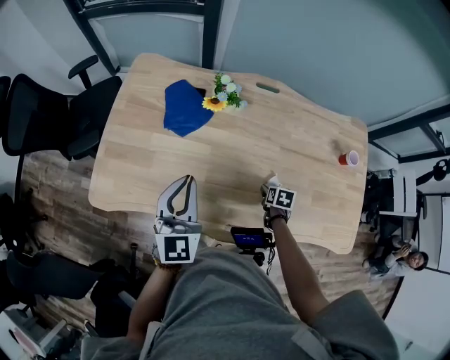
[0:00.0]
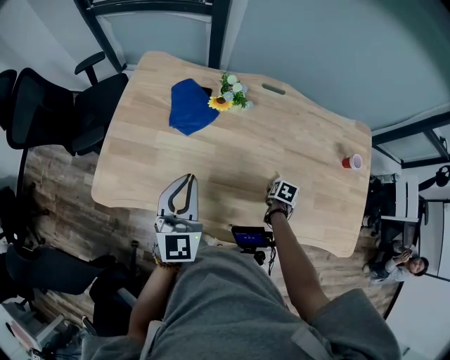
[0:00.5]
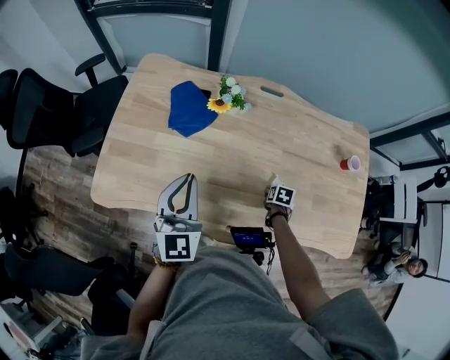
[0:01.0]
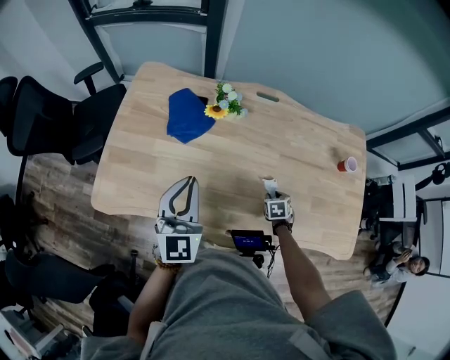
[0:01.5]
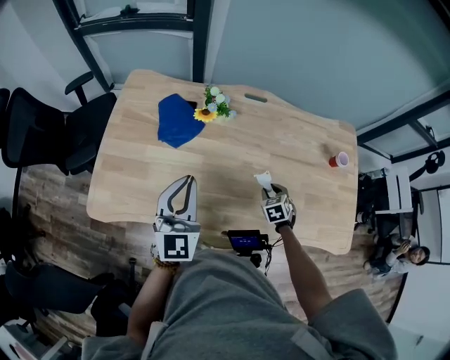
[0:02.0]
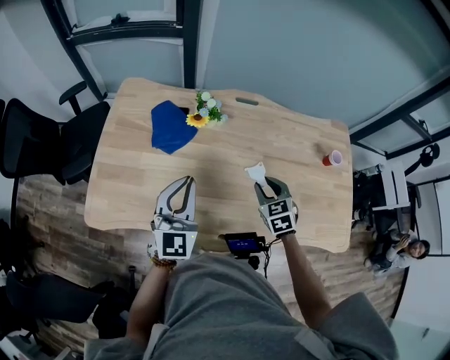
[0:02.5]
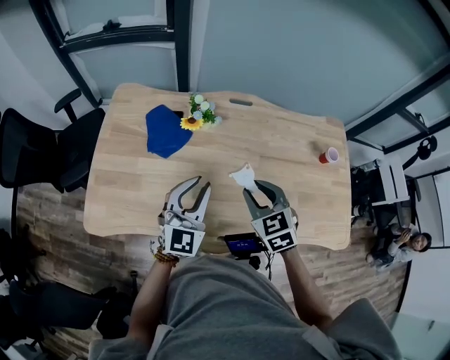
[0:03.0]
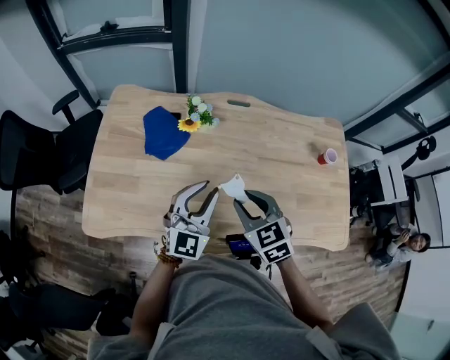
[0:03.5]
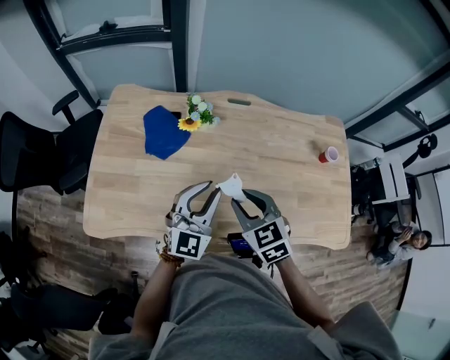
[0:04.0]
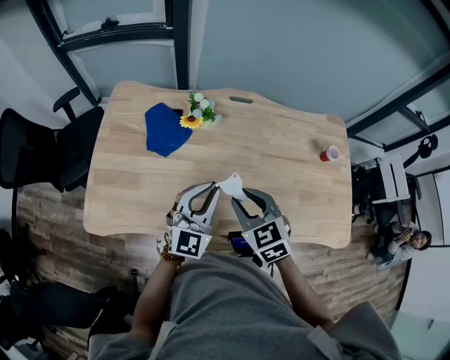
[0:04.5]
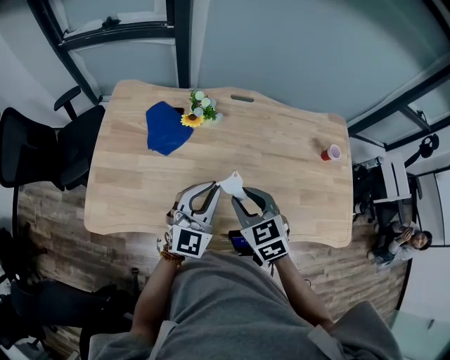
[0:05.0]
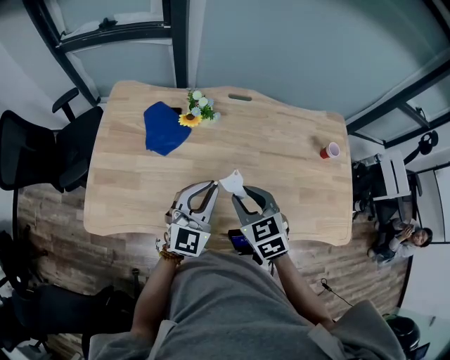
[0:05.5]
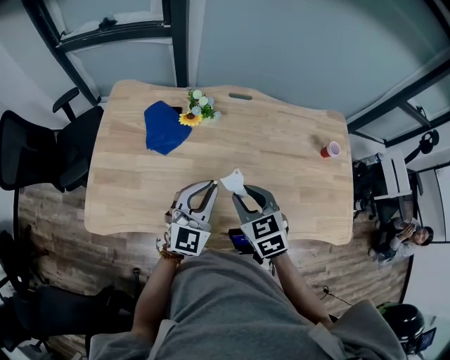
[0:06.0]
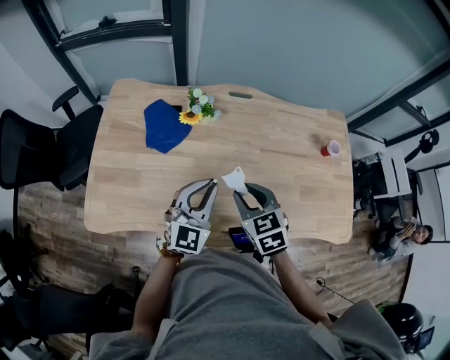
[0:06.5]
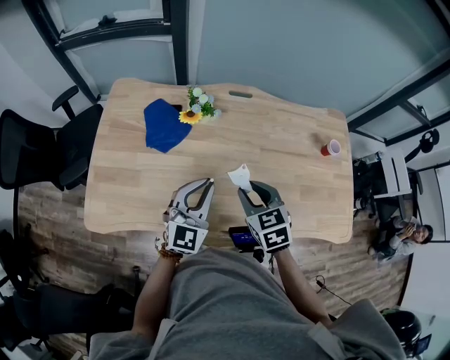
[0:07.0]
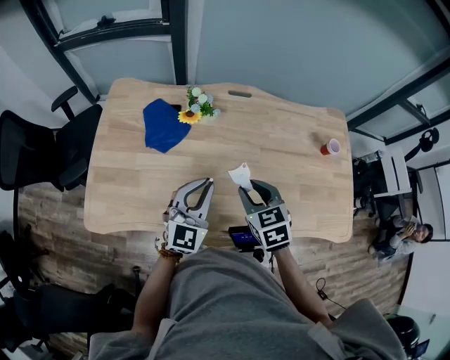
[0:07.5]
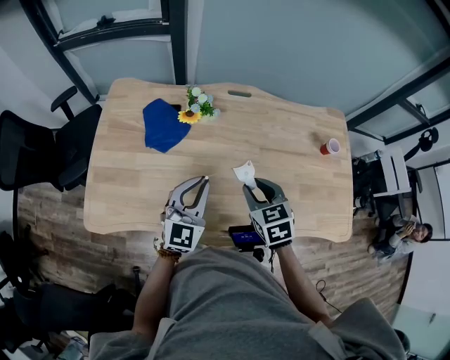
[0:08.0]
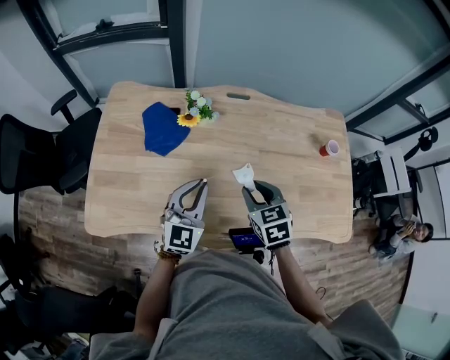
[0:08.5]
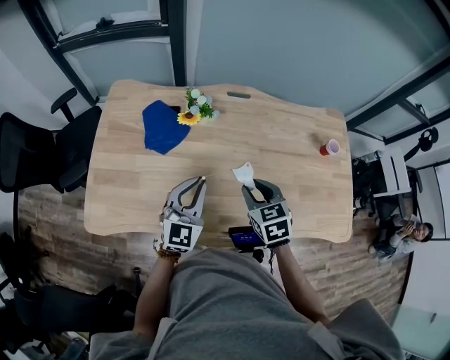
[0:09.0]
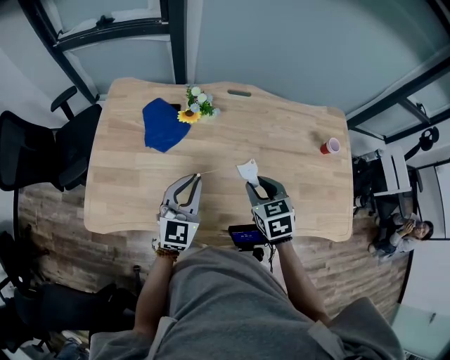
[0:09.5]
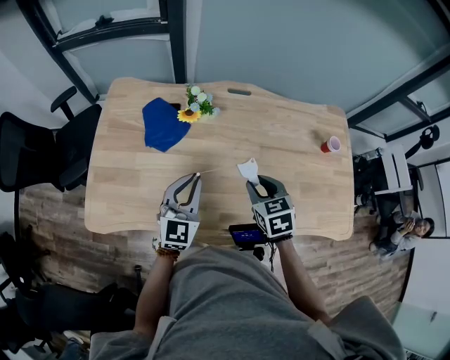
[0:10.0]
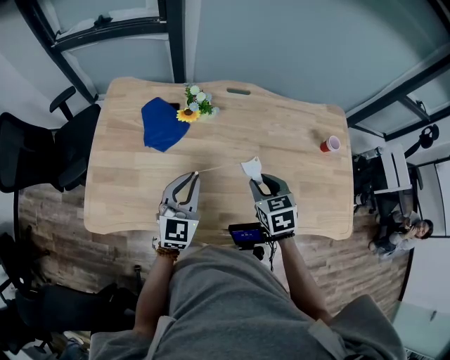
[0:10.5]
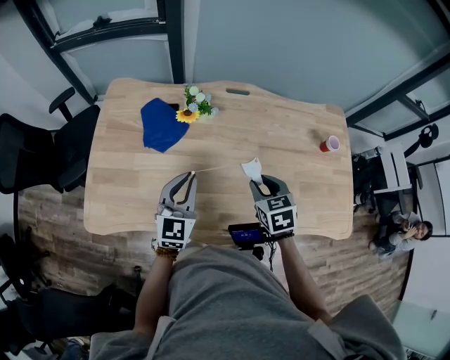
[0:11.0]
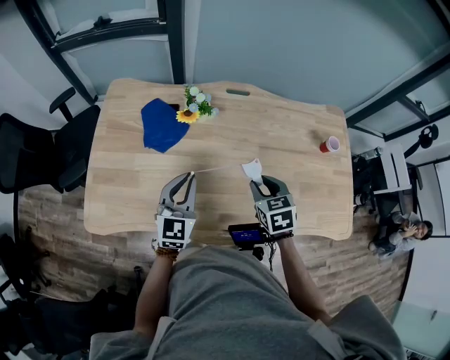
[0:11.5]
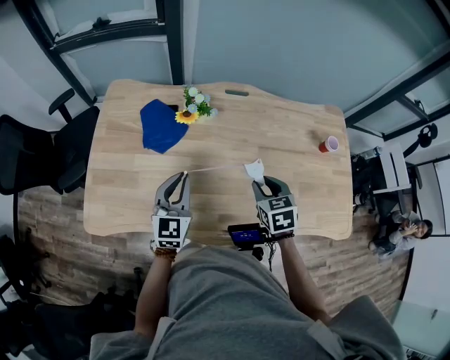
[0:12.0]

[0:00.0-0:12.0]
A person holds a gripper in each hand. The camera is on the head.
0.0 to 2.0 s: The right gripper shifts by about 5 cm, changes its angle by some 40 degrees, and closes its fingers.
2.0 to 4.0 s: The right gripper goes roughly 30 cm upward and to the left, and swivels about 30 degrees, while the left gripper travels to the right by roughly 10 cm, and changes its angle by roughly 20 degrees.
4.0 to 6.0 s: There are only small adjustments of the grippers.
6.0 to 8.0 s: The grippers make only small movements.
8.0 to 10.0 s: The grippers make only small movements.
10.0 to 12.0 s: There are only small adjustments of the grippers.

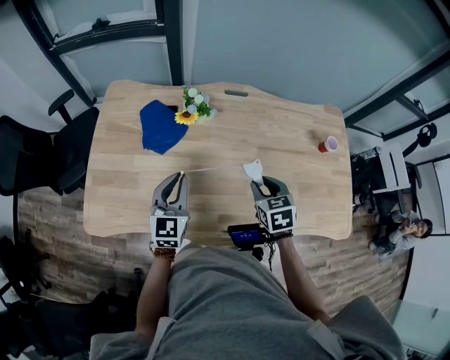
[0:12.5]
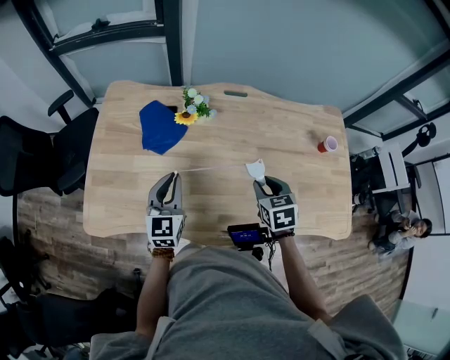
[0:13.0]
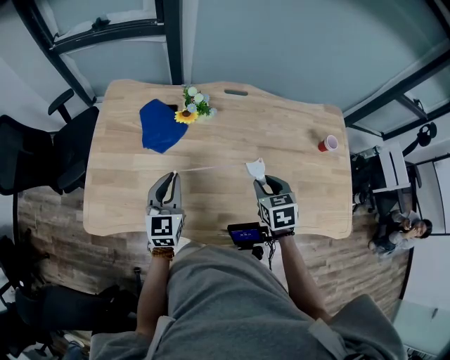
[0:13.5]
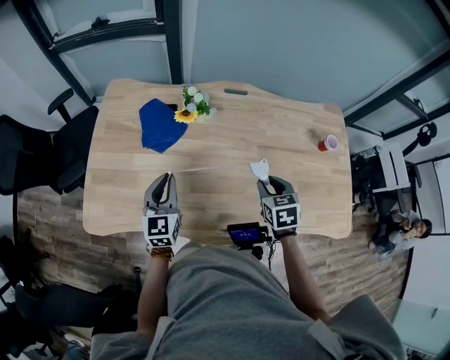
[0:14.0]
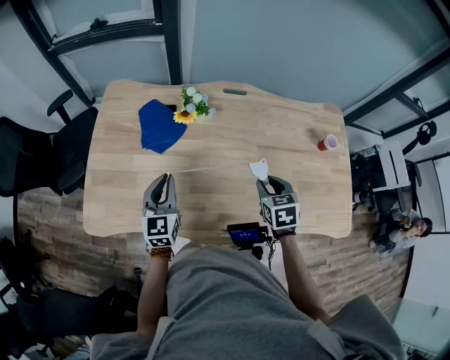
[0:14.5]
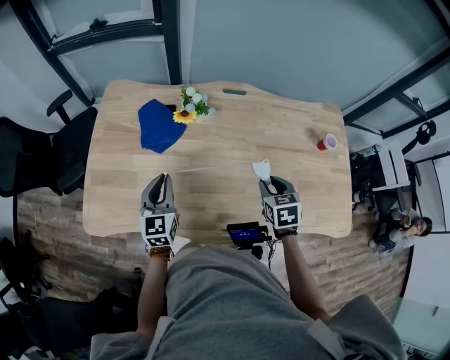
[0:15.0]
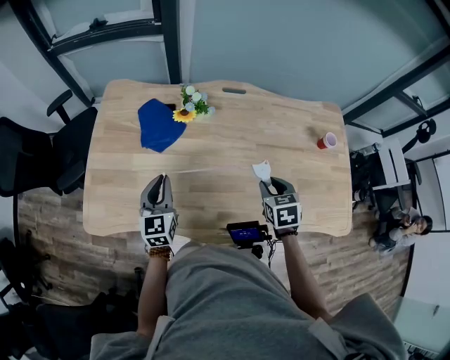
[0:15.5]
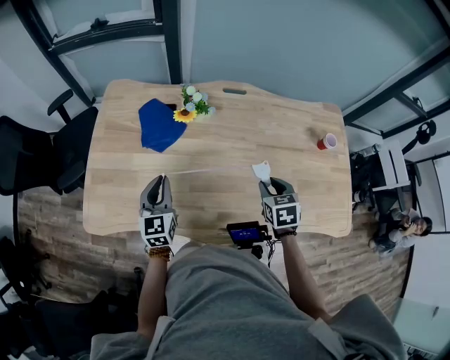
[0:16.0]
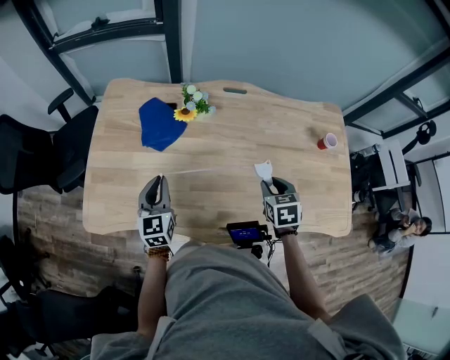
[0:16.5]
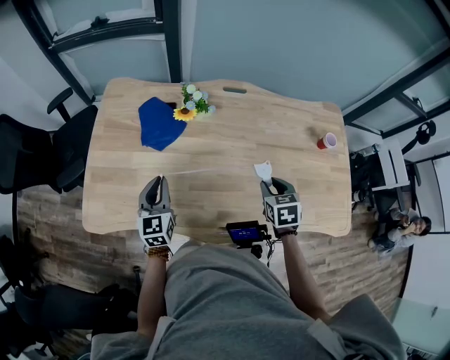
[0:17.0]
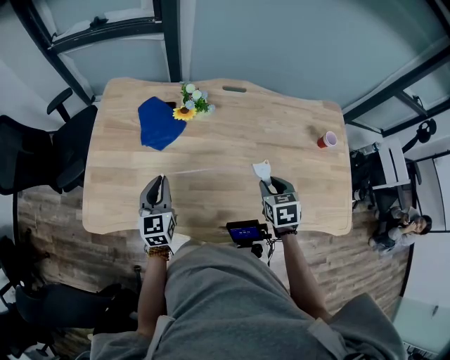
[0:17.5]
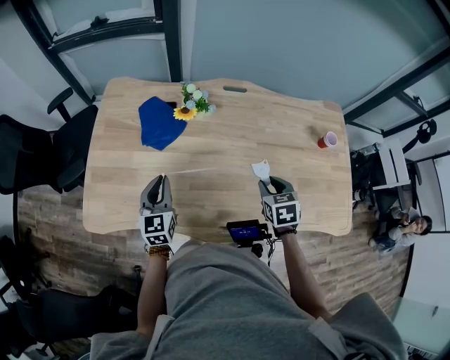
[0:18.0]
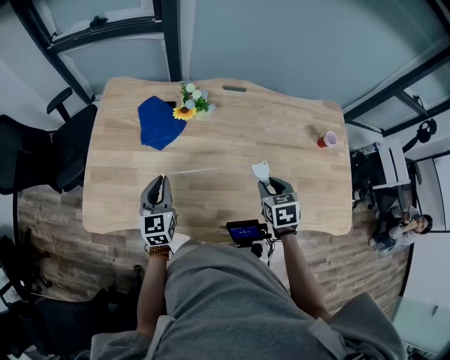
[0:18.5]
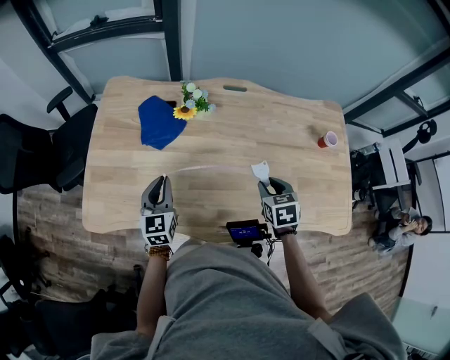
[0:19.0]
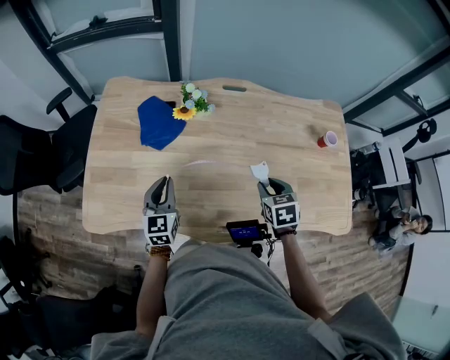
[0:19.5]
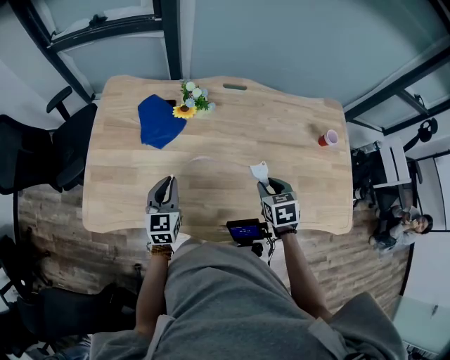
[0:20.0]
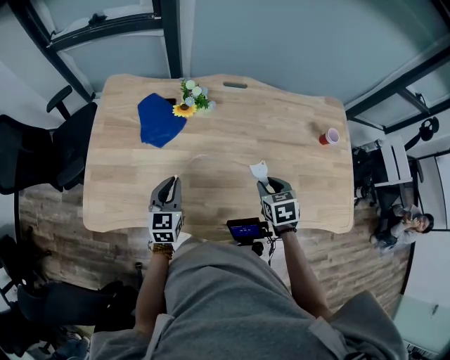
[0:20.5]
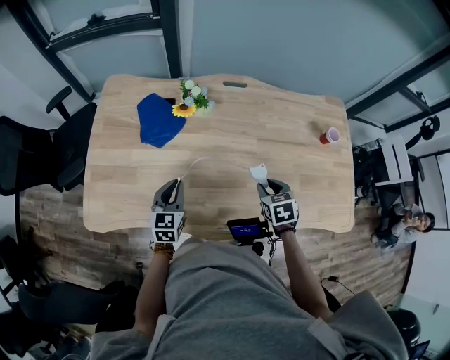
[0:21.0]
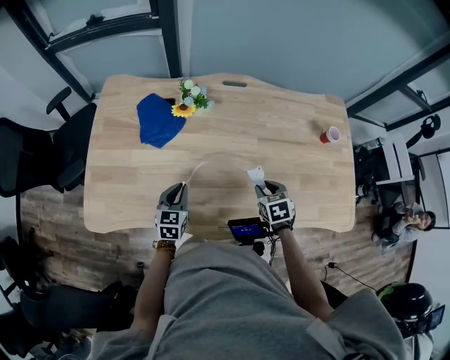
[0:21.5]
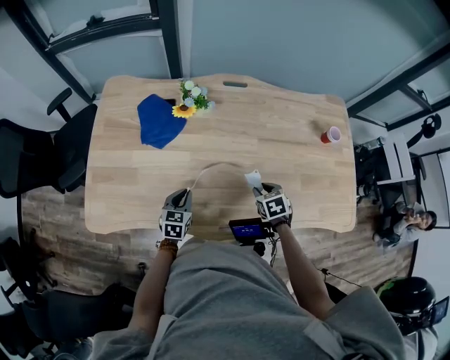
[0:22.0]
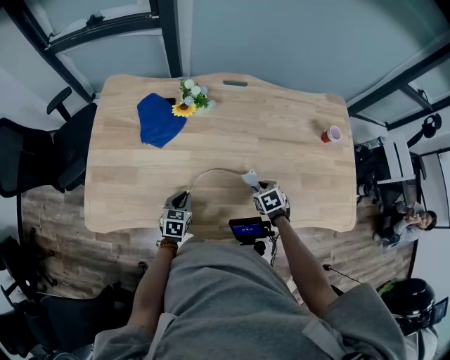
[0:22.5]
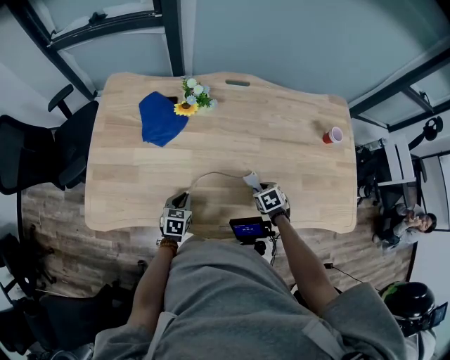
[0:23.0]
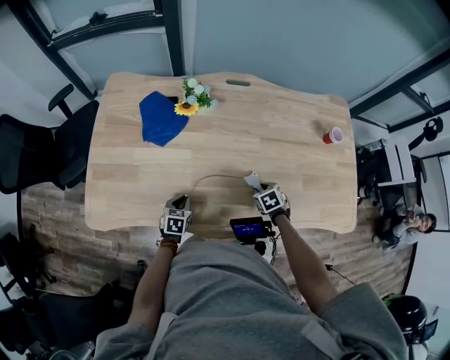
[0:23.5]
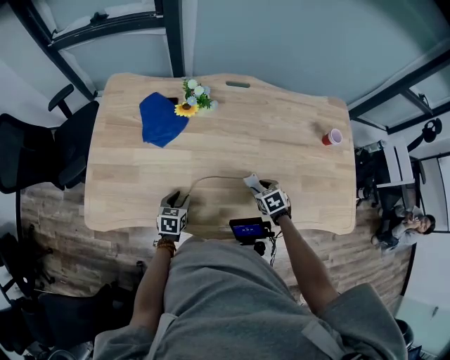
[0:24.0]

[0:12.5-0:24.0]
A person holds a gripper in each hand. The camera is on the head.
12.5 to 14.5 s: There are only small adjustments of the grippers.
14.5 to 16.5 s: The grippers make only small movements.
16.5 to 18.5 s: Neither gripper changes place.
18.5 to 20.0 s: The grippers stay close to where they were, moving slightly.
20.0 to 22.0 s: The grippers both shift downward by approximately 10 cm. The left gripper turns by some 20 degrees.
22.0 to 24.0 s: The left gripper changes place by roughly 5 cm, and opens.

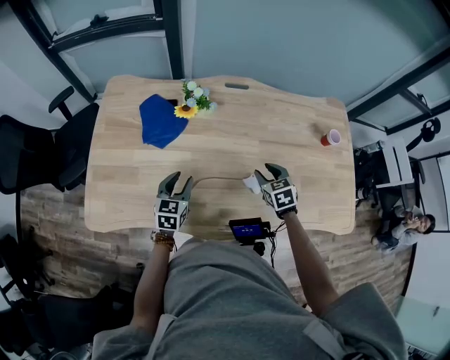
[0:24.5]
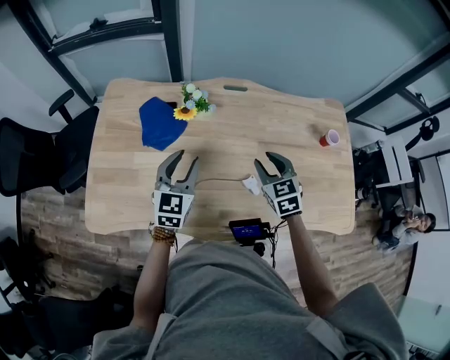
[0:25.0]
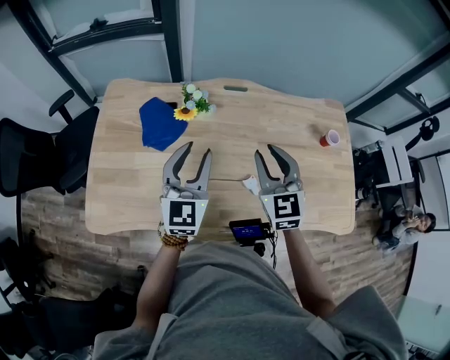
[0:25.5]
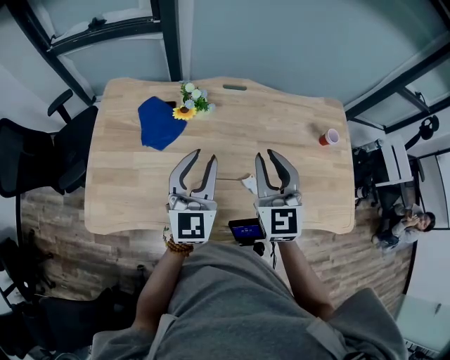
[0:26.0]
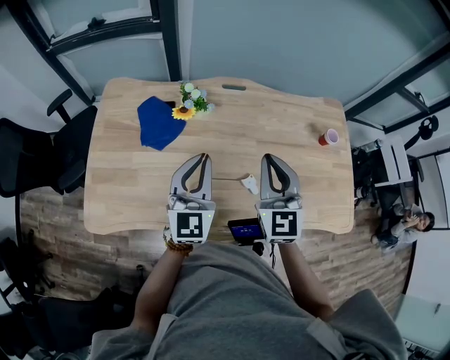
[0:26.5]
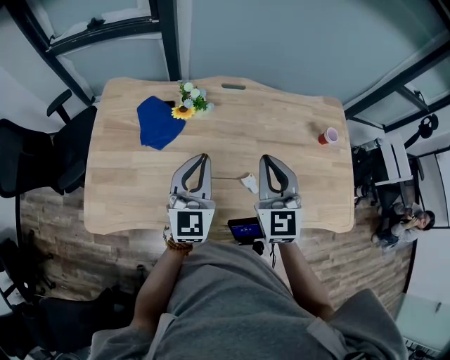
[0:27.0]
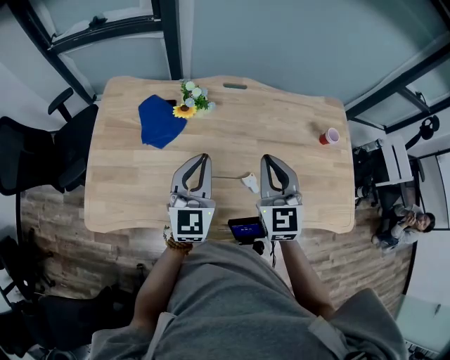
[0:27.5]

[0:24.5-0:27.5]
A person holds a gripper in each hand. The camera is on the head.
24.5 to 26.0 s: The grippers both shift upward by roughly 25 cm. The right gripper tilts its fingers about 40 degrees upward. The left gripper tilts its fingers some 30 degrees upward.
26.0 to 27.5 s: The left gripper closes up.

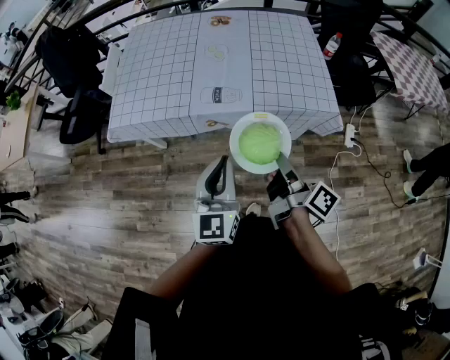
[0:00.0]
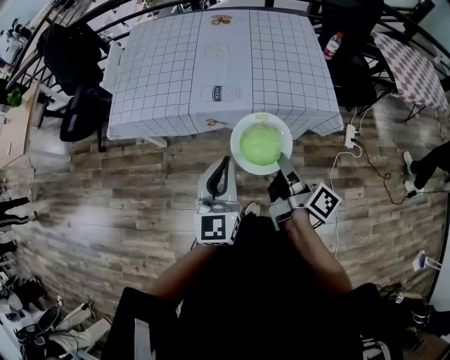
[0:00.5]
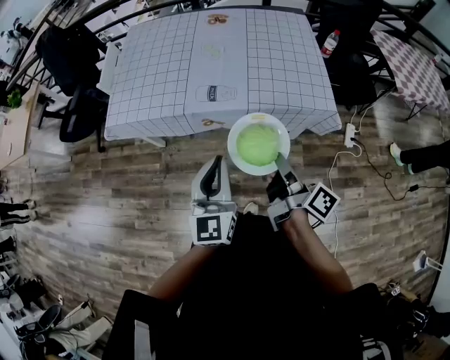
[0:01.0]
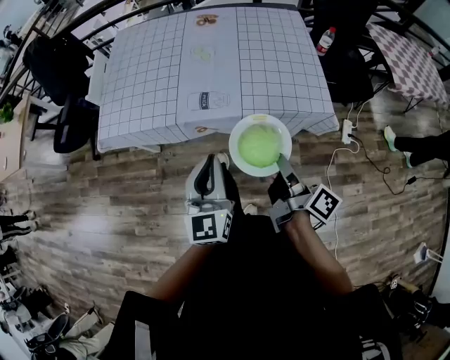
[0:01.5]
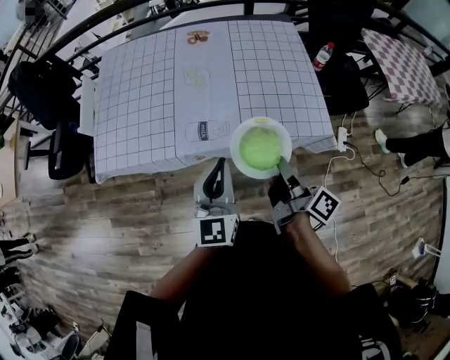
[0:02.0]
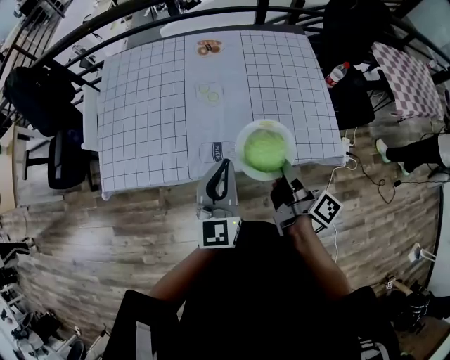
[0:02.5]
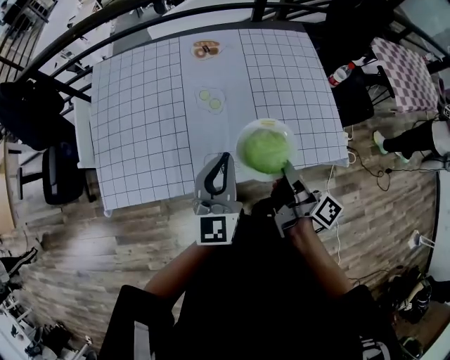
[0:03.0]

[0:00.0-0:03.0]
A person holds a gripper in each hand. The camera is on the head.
0.0 to 1.5 s: The right gripper moves about 5 cm; the left gripper heads forward, covering roughly 5 cm.
1.5 to 3.0 s: The two grippers go about 30 cm forward.
